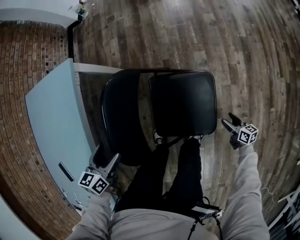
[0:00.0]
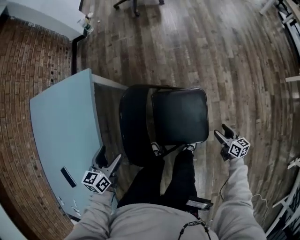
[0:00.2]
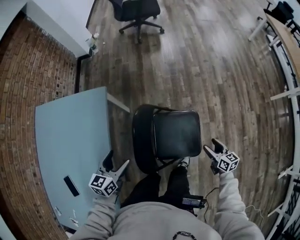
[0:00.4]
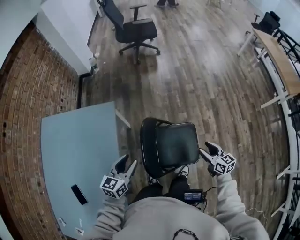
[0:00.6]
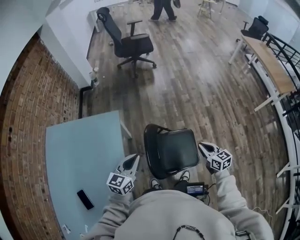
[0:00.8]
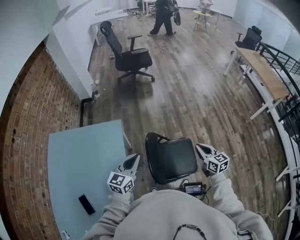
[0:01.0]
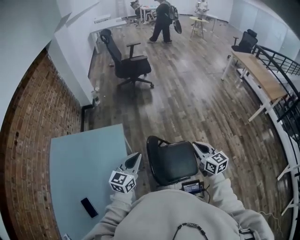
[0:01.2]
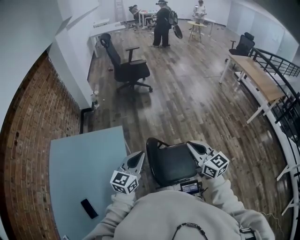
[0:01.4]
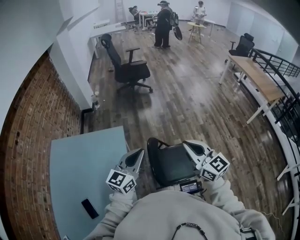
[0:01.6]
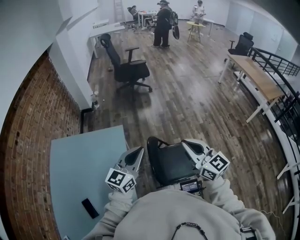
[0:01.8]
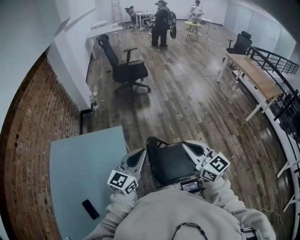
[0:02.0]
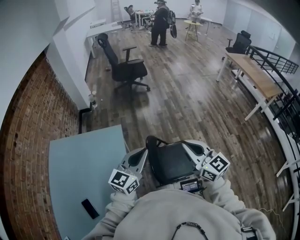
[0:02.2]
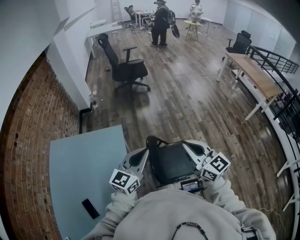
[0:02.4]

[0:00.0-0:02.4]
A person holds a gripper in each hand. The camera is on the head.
0:00.0 to 0:01.2: The left gripper travels upward by some 40 cm, tips its fingers upward by roughly 40 degrees, and closes up. Meanwhile the right gripper travels upward and to the left by roughly 70 cm, swivels about 50 degrees, and closes.
0:01.2 to 0:02.4: The left gripper travels upward by some 10 cm. Meanwhile the right gripper goes roughly 15 cm upward, to the left and backward.

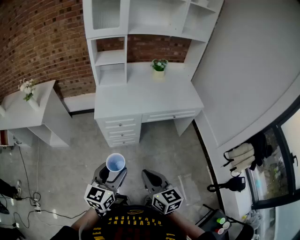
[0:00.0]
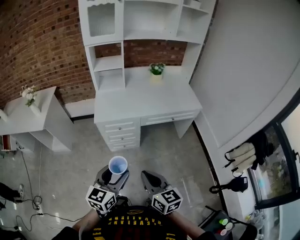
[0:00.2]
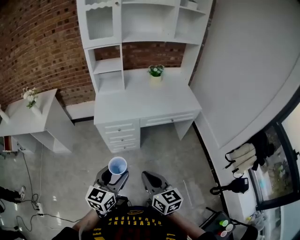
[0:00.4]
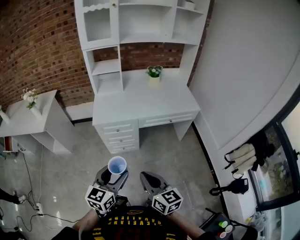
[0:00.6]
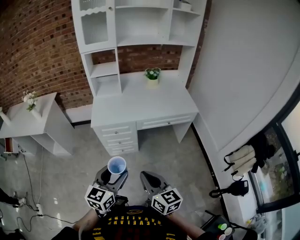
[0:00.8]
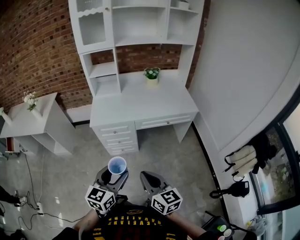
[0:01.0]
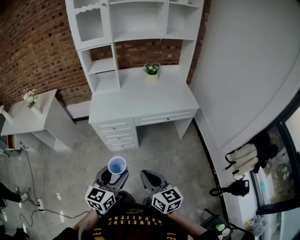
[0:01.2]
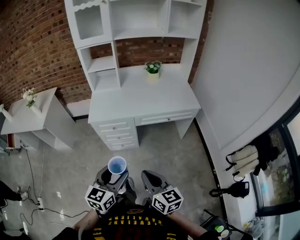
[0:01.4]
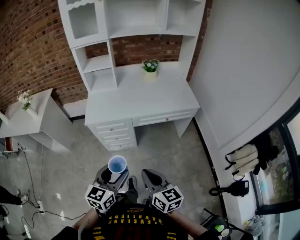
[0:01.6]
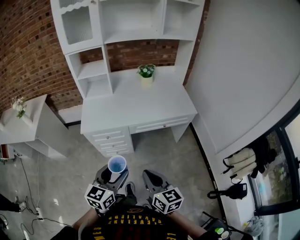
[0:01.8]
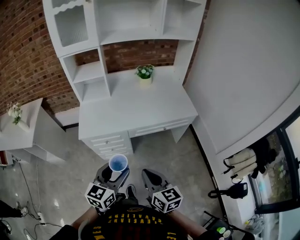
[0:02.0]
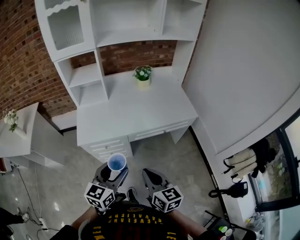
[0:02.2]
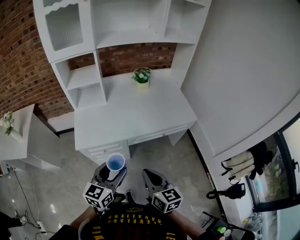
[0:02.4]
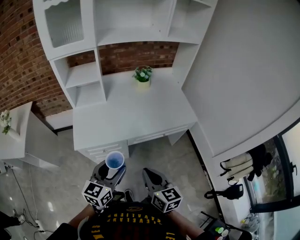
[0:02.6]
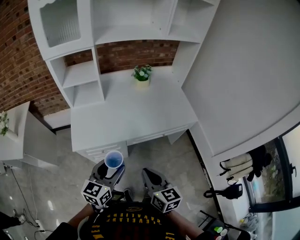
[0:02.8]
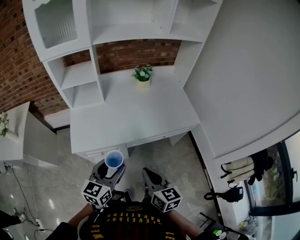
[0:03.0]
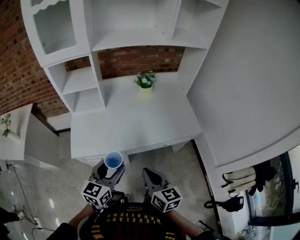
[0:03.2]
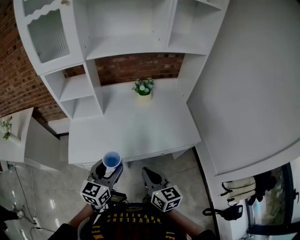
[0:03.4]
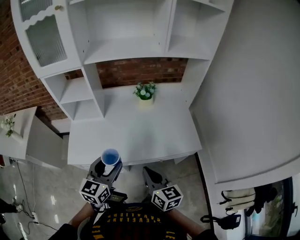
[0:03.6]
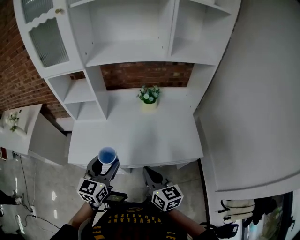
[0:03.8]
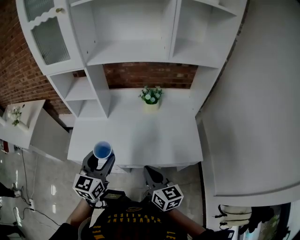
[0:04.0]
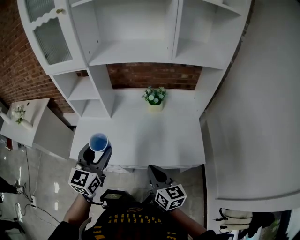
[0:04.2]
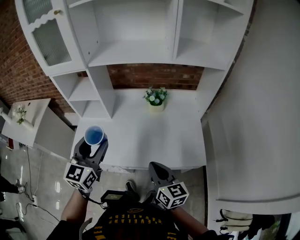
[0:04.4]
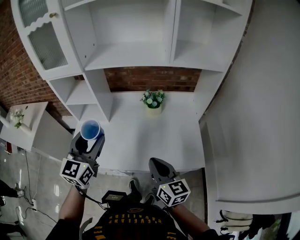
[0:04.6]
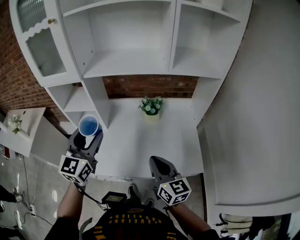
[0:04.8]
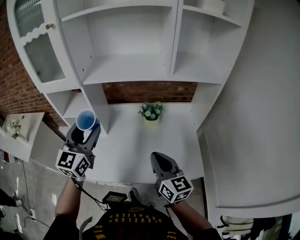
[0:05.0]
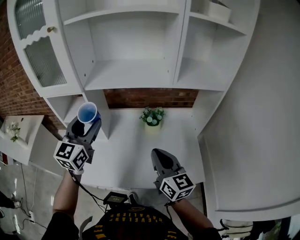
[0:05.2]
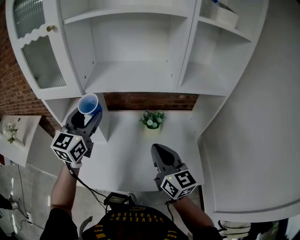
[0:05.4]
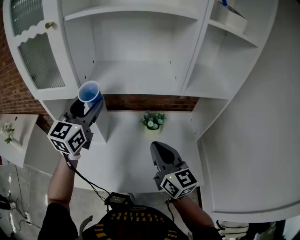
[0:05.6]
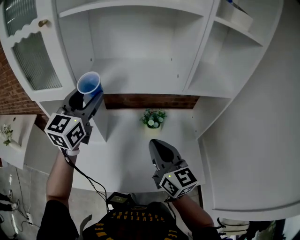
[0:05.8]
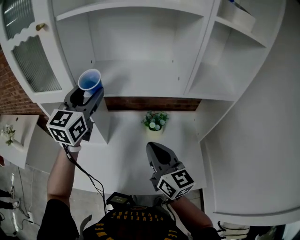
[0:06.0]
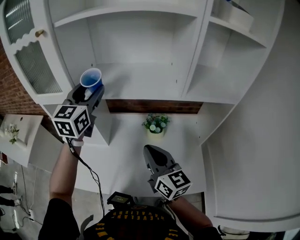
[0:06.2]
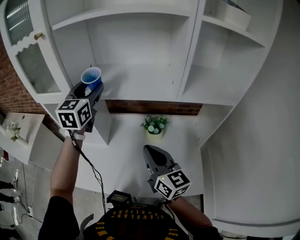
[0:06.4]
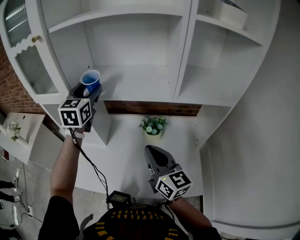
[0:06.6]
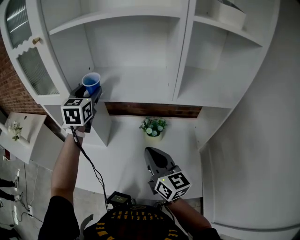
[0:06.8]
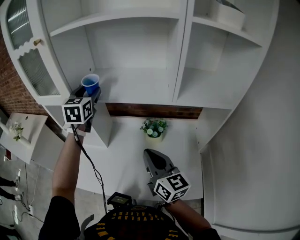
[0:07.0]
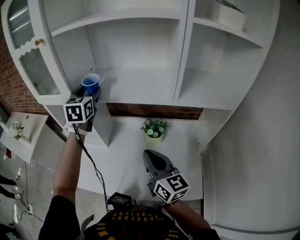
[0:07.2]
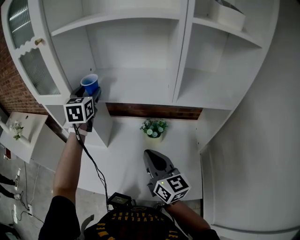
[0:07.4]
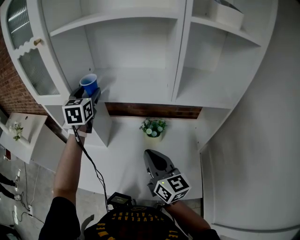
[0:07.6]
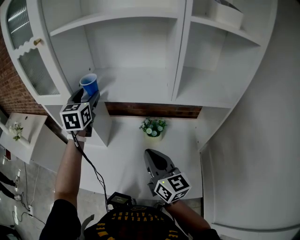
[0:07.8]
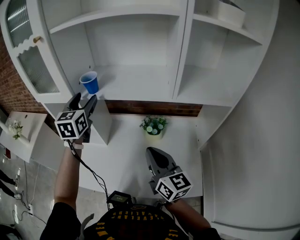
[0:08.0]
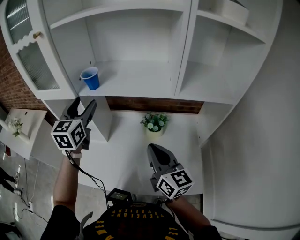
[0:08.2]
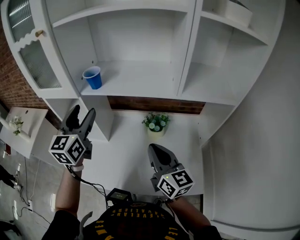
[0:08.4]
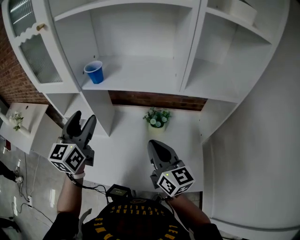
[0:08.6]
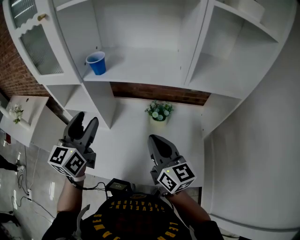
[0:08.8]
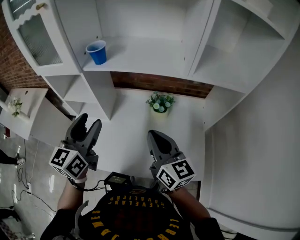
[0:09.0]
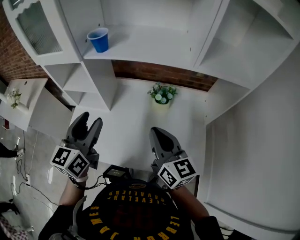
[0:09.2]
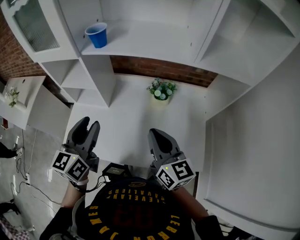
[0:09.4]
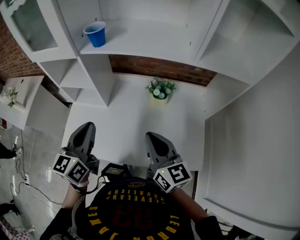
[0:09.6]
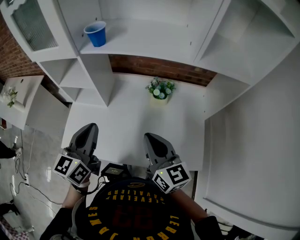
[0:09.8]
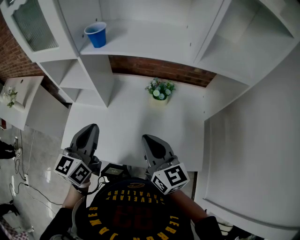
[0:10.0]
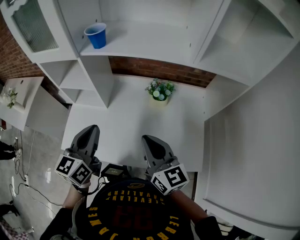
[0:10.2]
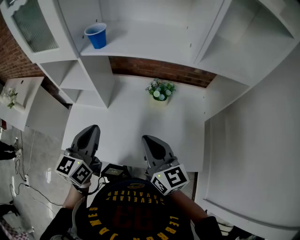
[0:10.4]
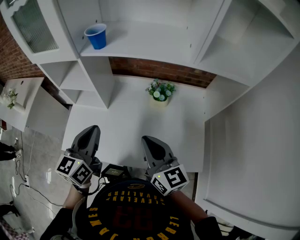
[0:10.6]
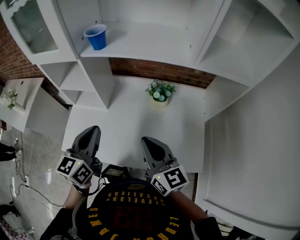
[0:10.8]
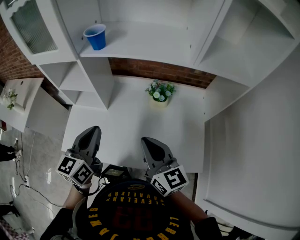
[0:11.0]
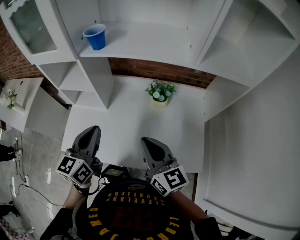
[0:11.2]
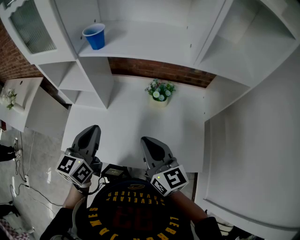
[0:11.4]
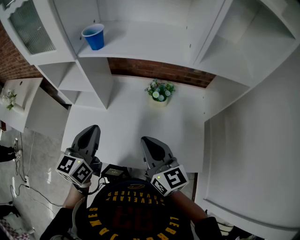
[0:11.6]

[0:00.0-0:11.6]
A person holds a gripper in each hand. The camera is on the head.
0:00.0 to 0:01.4: The grippers both shift to the right by roughly 15 cm.
0:01.4 to 0:02.8: The two grippers go about 25 cm forward.
0:02.8 to 0:04.4: The left gripper is displaced forward, upward and to the right by roughly 30 cm, and changes its angle by roughly 30 degrees; the right gripper heads forward and to the right, covering some 30 cm.
0:04.4 to 0:05.8: The two grippers go some 30 cm forward and upward.
0:05.8 to 0:07.2: The left gripper shifts approximately 10 cm forward, and swivels some 30 degrees. Meanwhile the right gripper shifts by some 5 cm.
0:07.2 to 0:08.8: The left gripper shifts approximately 20 cm backward, and changes its angle by some 20 degrees.
0:08.8 to 0:10.2: The left gripper travels downward and backward by roughly 10 cm, and closes up, while the right gripper moves approximately 10 cm.
0:10.2 to 0:11.6: There are only small adjustments of the grippers.

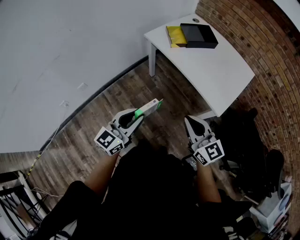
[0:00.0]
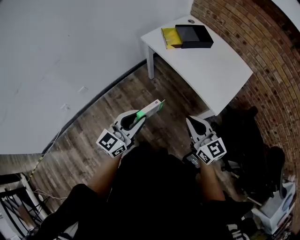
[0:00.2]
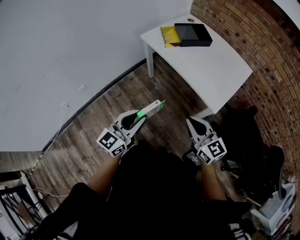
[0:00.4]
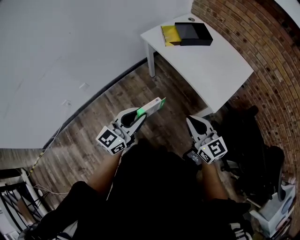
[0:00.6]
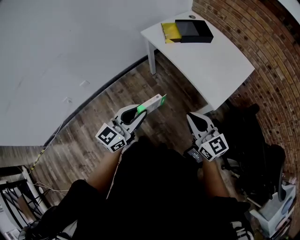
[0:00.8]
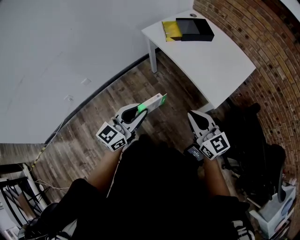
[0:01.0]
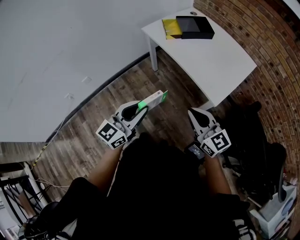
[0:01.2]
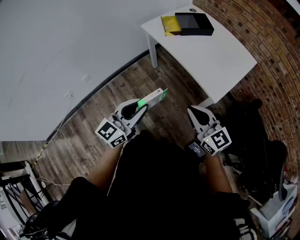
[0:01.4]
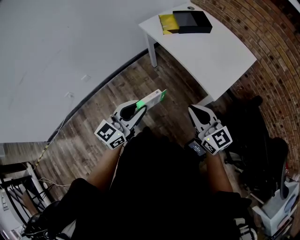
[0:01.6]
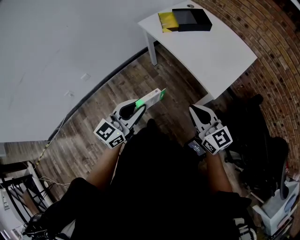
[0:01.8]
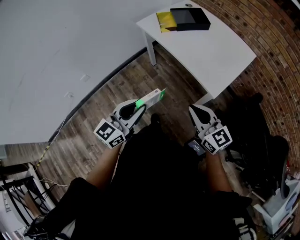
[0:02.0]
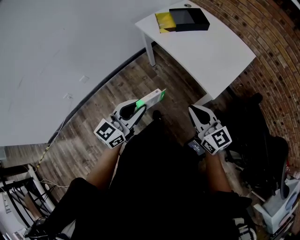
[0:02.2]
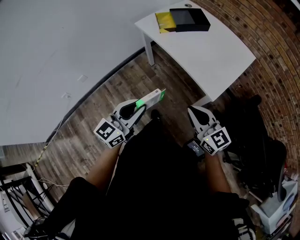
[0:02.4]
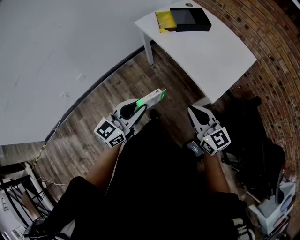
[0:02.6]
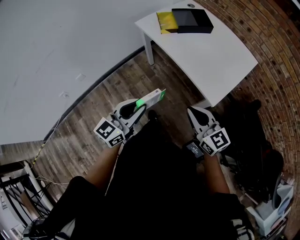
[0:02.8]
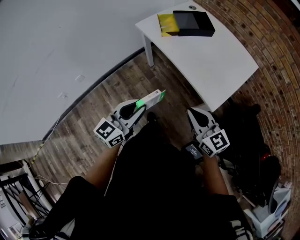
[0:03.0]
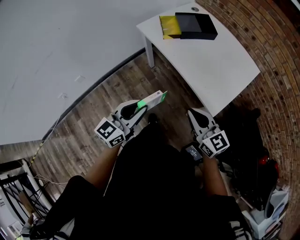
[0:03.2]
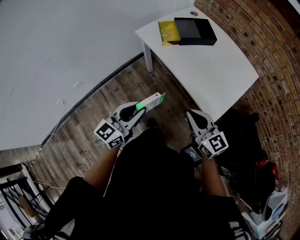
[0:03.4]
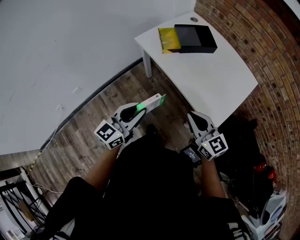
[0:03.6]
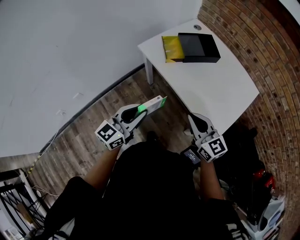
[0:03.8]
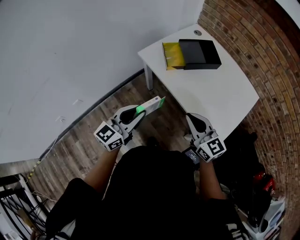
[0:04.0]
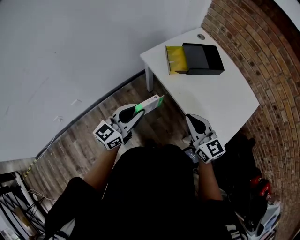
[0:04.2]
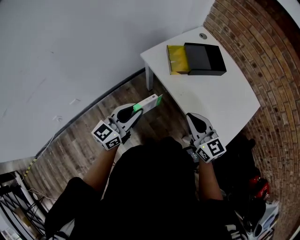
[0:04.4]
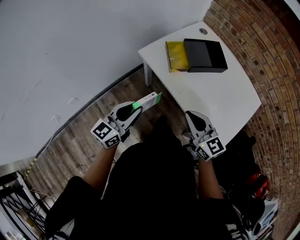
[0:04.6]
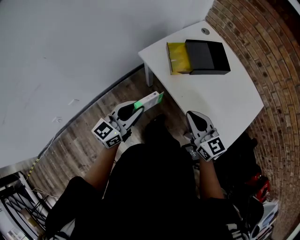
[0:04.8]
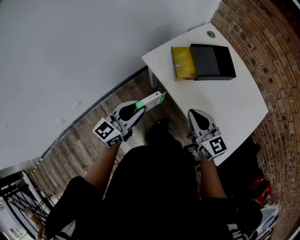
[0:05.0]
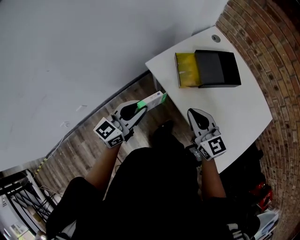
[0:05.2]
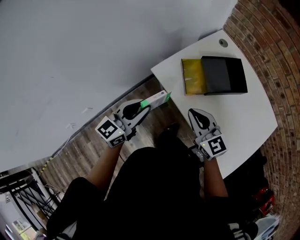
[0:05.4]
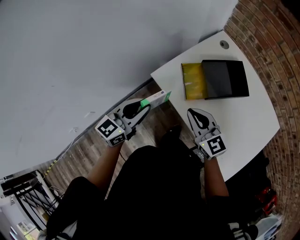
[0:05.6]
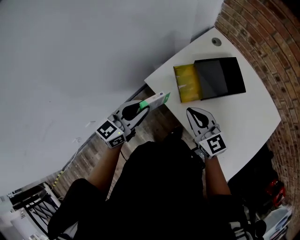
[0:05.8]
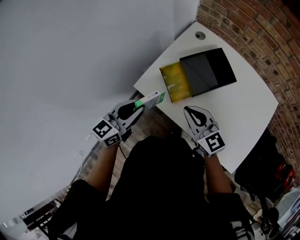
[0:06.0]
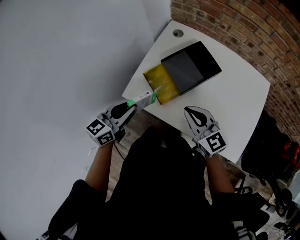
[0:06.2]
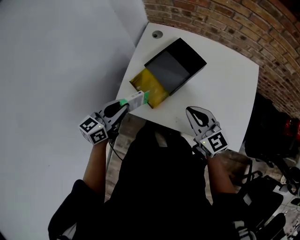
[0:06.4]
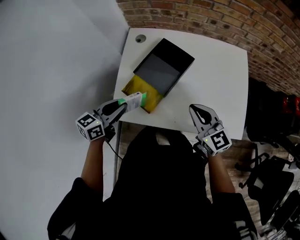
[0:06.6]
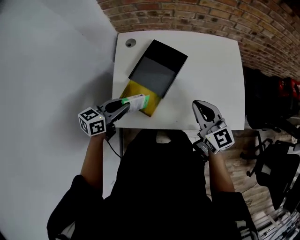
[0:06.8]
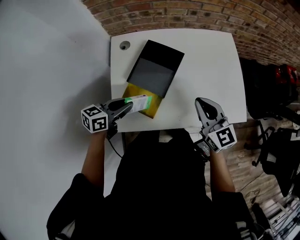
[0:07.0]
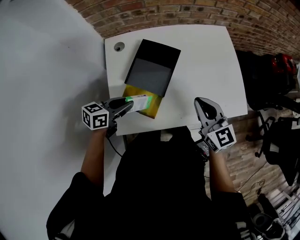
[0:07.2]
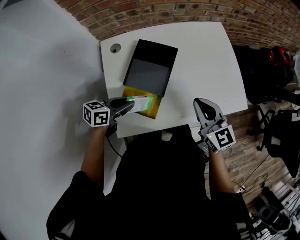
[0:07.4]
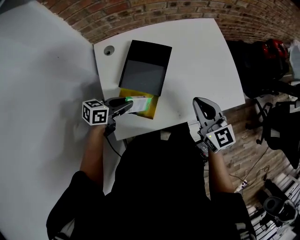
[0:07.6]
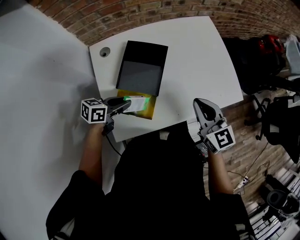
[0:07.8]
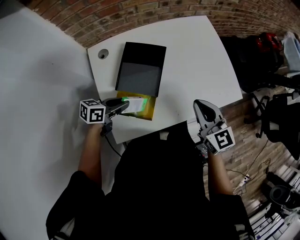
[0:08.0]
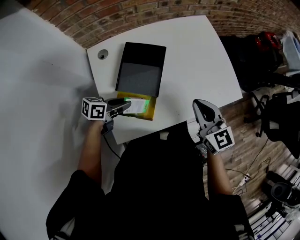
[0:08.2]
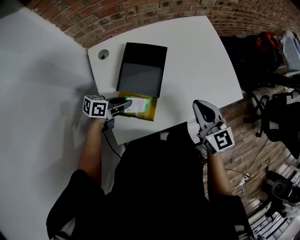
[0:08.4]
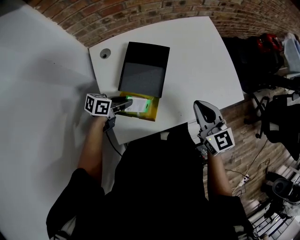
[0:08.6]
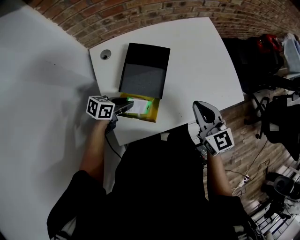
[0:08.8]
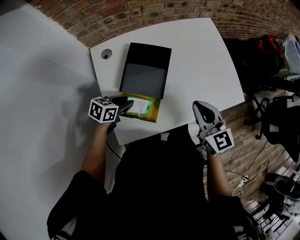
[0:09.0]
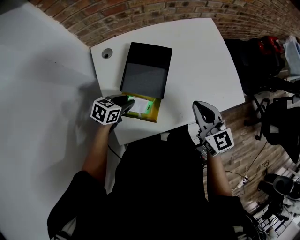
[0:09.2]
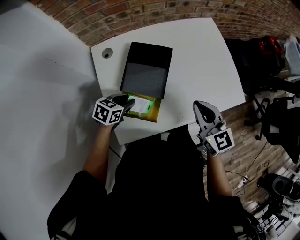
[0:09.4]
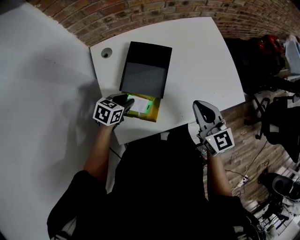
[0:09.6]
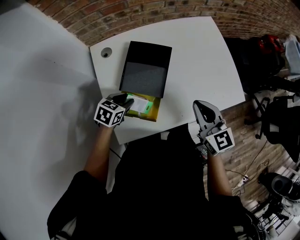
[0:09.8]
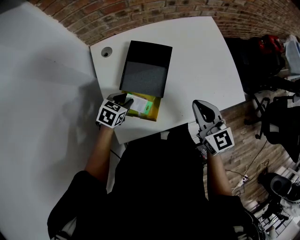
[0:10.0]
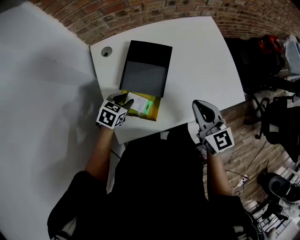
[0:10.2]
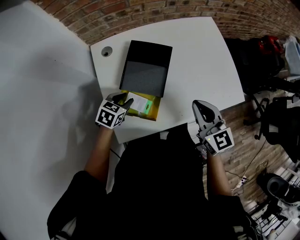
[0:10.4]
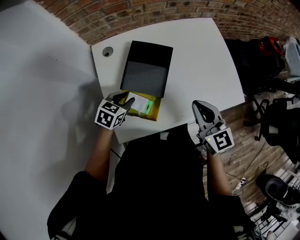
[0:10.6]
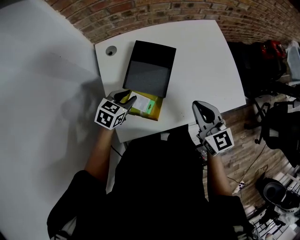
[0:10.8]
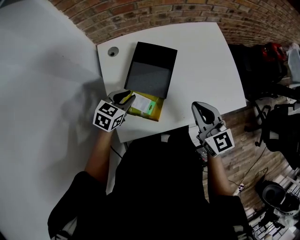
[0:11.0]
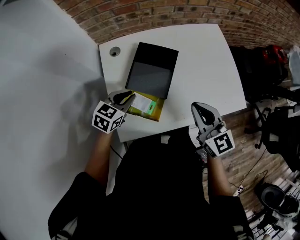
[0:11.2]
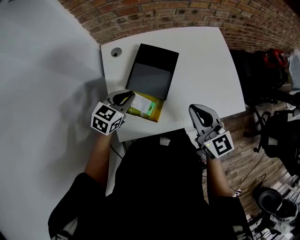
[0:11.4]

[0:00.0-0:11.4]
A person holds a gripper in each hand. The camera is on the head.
0:00.0 to 0:01.4: The left gripper goes approximately 10 cm to the right and backward. Meanwhile the right gripper moves to the right, roughly 10 cm.
0:01.4 to 0:02.8: The right gripper moves some 5 cm. The left gripper ends up some 5 cm from where it was.
0:02.8 to 0:04.2: The grippers both shift forward by approximately 25 cm.
0:04.2 to 0:05.6: Both grippers move forward, approximately 25 cm.
0:05.6 to 0:07.2: The left gripper changes place by about 25 cm, and changes its angle by about 70 degrees; the right gripper ends up approximately 20 cm from where it was, and changes its angle by about 60 degrees.
0:07.2 to 0:08.6: The left gripper travels downward by some 10 cm, and rotates some 20 degrees.
0:08.6 to 0:10.0: The left gripper swivels some 40 degrees.
0:10.0 to 0:11.4: The left gripper shifts about 10 cm upward, swivels some 20 degrees, and closes up.
